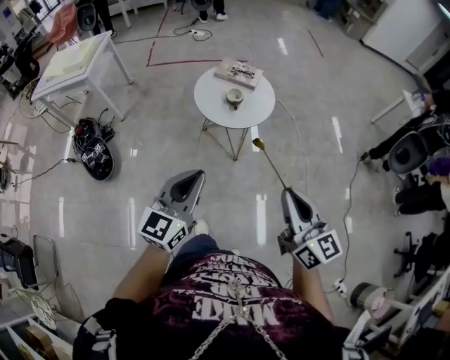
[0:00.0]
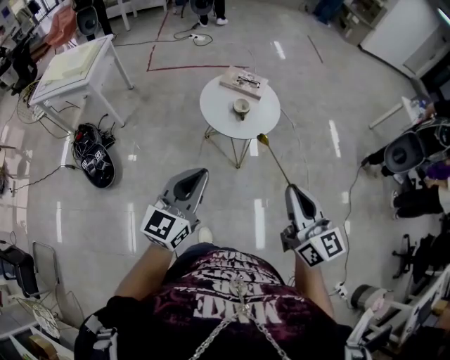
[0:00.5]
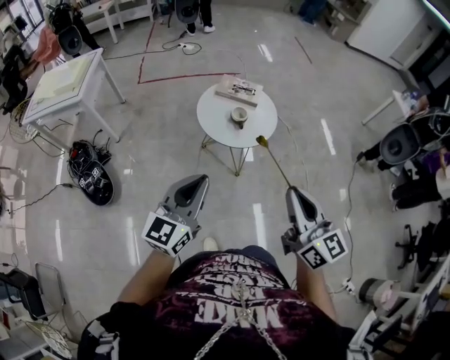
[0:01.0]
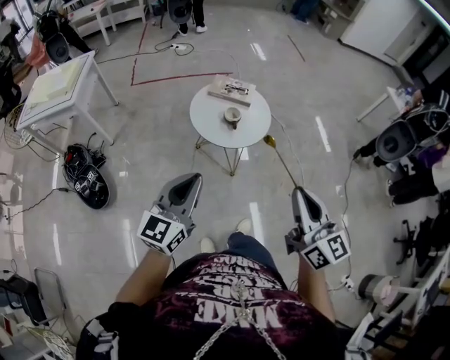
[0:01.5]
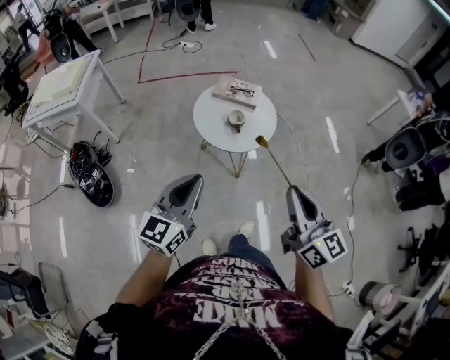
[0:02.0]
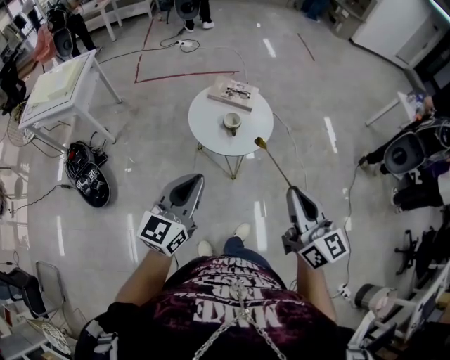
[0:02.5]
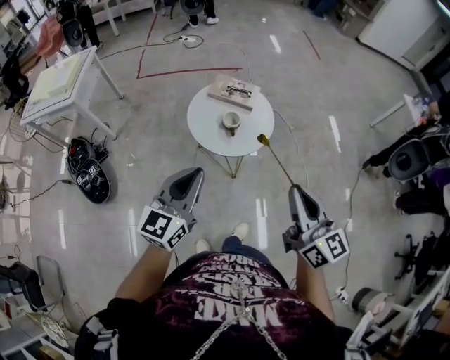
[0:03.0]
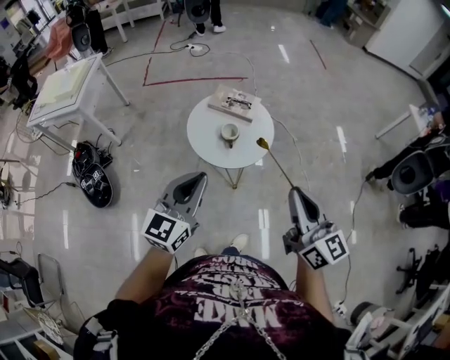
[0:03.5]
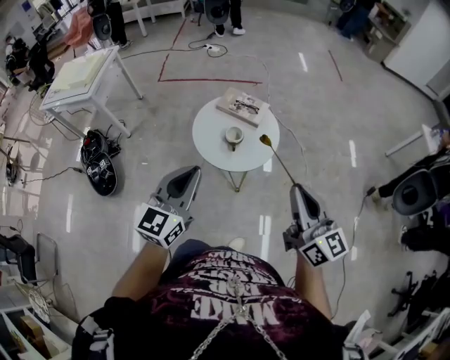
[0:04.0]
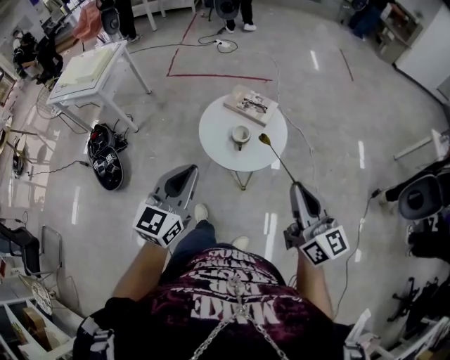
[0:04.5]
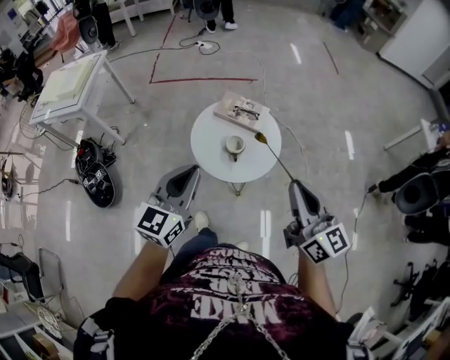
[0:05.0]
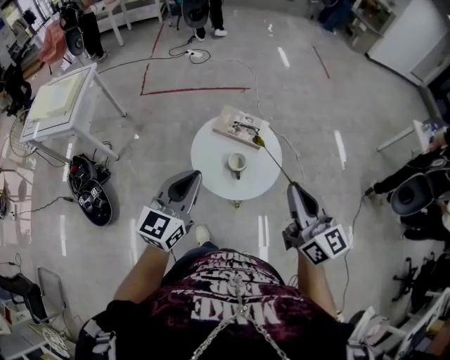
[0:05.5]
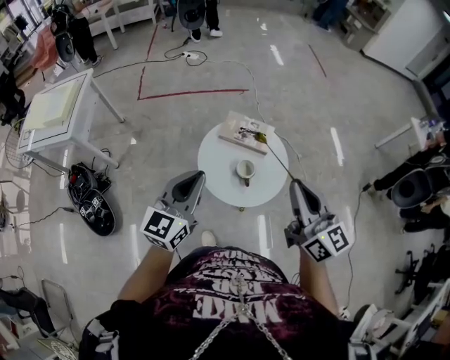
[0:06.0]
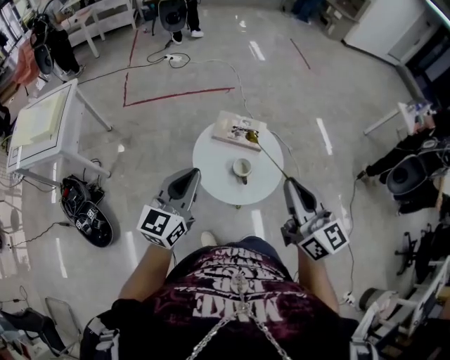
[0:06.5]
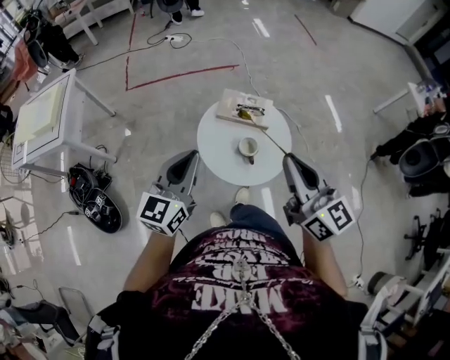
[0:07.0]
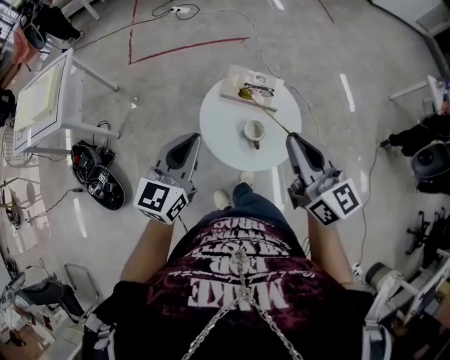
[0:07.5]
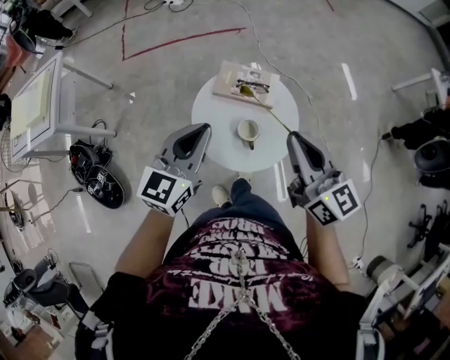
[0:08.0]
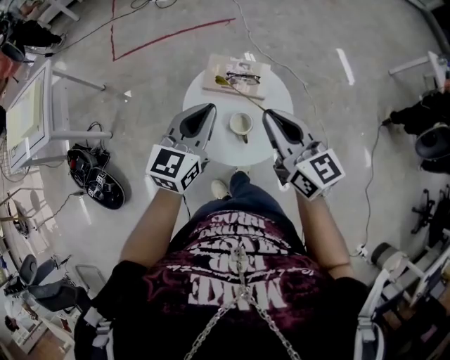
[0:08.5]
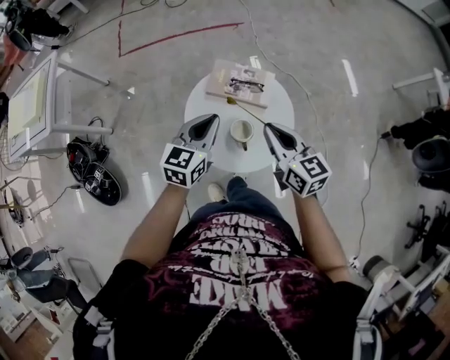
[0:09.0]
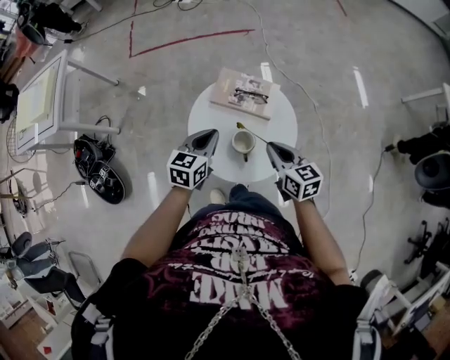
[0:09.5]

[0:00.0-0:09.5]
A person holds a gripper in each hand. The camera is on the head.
0:00.0 to 0:02.0: The grippers both shift forward and to the left by about 10 cm.
0:02.0 to 0:04.0: Both grippers move forward and to the right, some 15 cm.
0:04.0 to 0:05.5: The grippers both shift forward and to the left by approximately 15 cm.
0:05.5 to 0:07.5: The grippers both shift forward and to the left by about 15 cm.
0:07.5 to 0:09.5: The right gripper moves downward, roughly 25 cm, and turns by some 30 degrees; the left gripper moves downward, forward and to the right, about 25 cm, and swivels roughly 20 degrees.

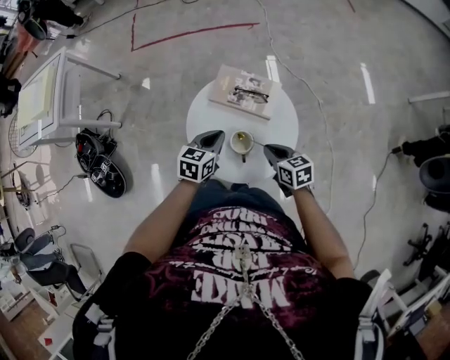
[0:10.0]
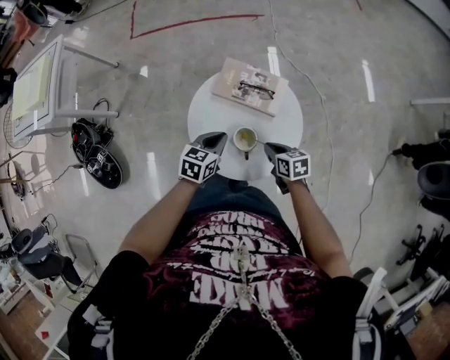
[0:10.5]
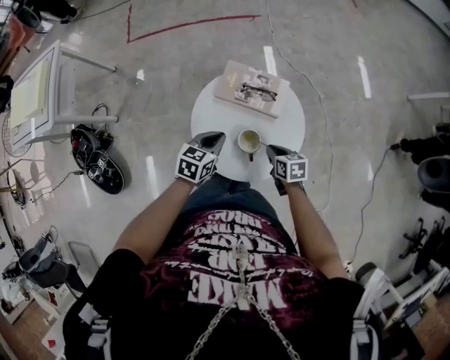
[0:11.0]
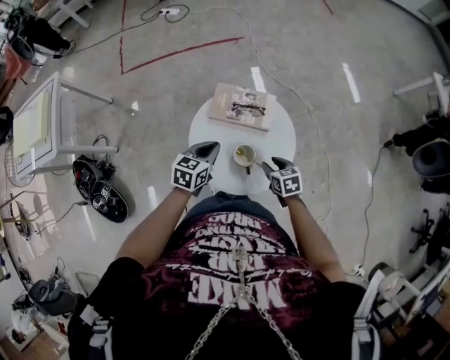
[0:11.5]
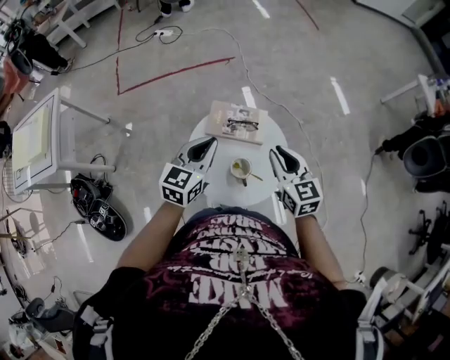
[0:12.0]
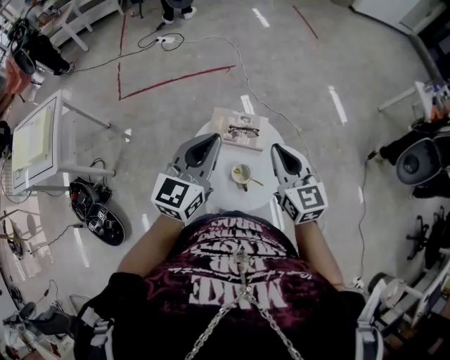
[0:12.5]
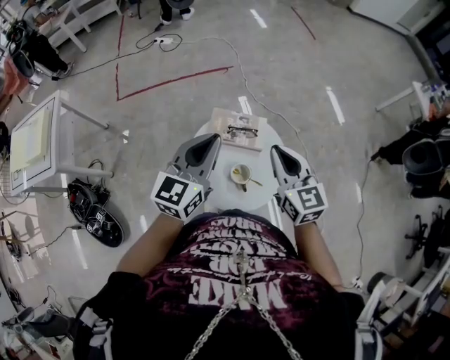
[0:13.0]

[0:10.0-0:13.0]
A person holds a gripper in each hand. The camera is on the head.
0:10.0 to 0:11.5: The right gripper ends up about 5 cm from where it was, and opens its fingers.
0:11.5 to 0:13.0: Both grippers travel together upward, roughly 30 cm. The left gripper tilts its fingers approximately 30 degrees upward, while the right gripper tips its fingers upward by some 40 degrees, and closes its fingers.

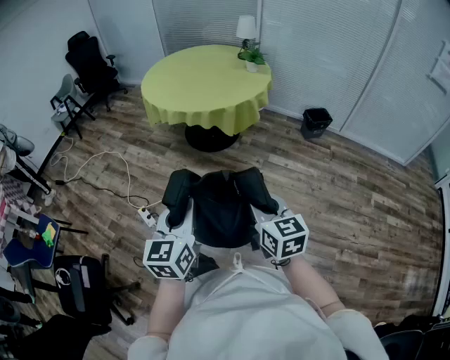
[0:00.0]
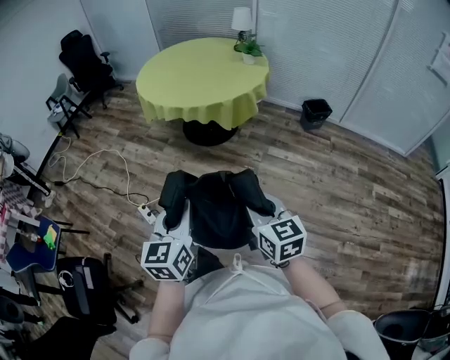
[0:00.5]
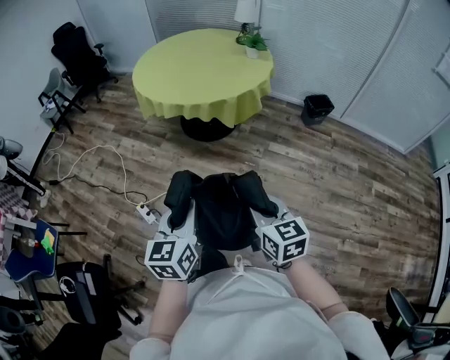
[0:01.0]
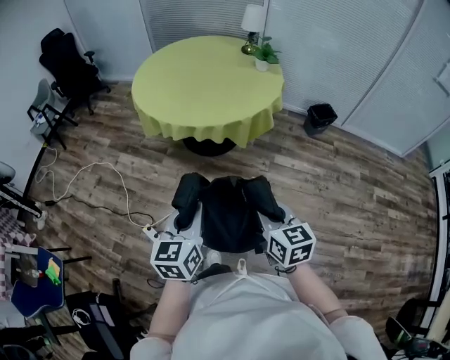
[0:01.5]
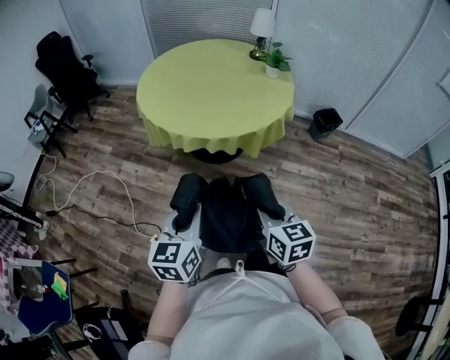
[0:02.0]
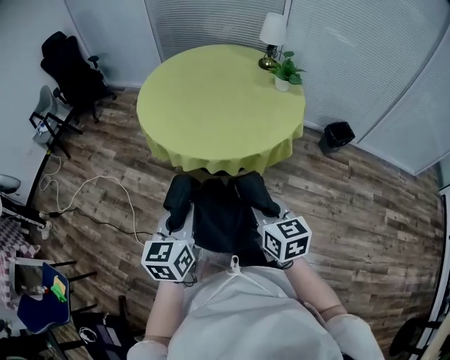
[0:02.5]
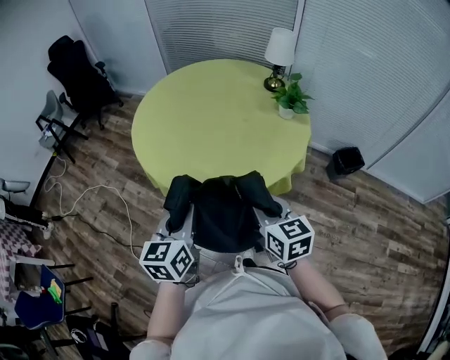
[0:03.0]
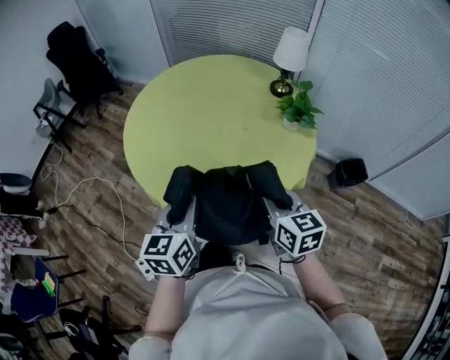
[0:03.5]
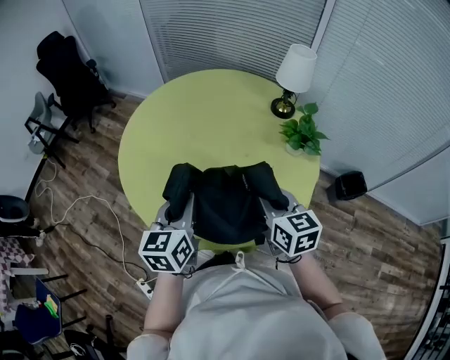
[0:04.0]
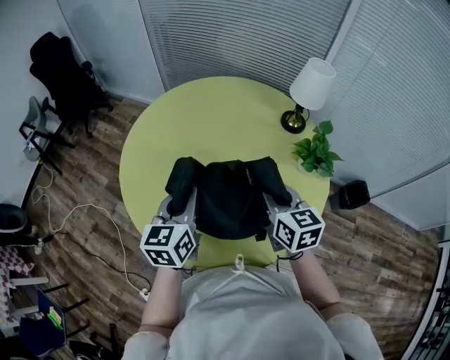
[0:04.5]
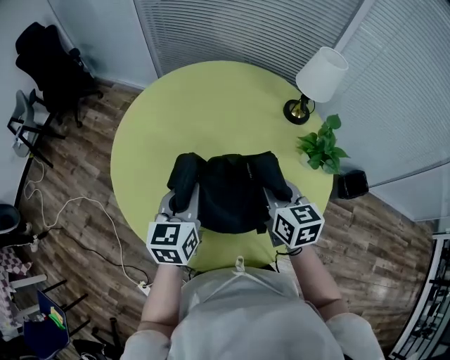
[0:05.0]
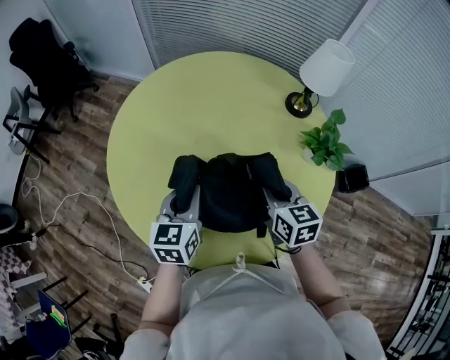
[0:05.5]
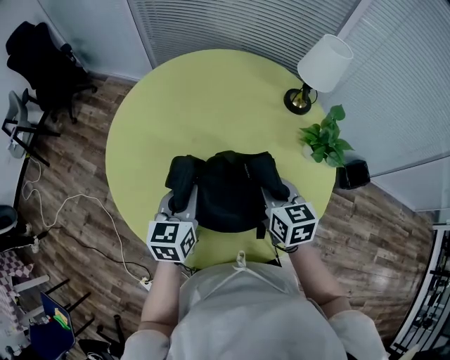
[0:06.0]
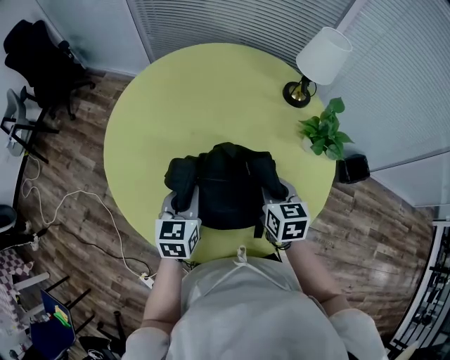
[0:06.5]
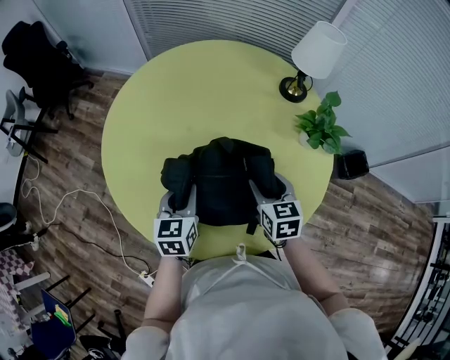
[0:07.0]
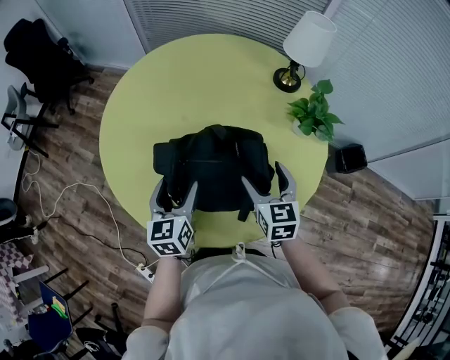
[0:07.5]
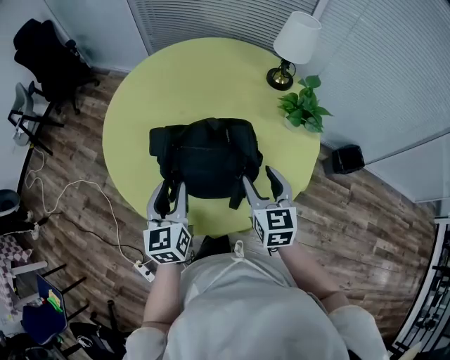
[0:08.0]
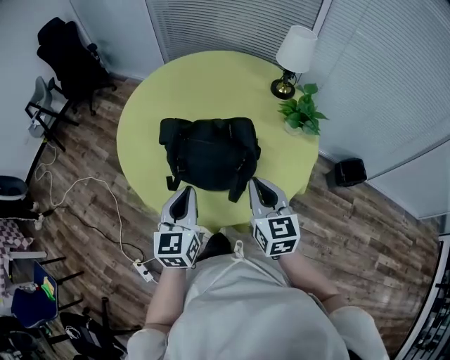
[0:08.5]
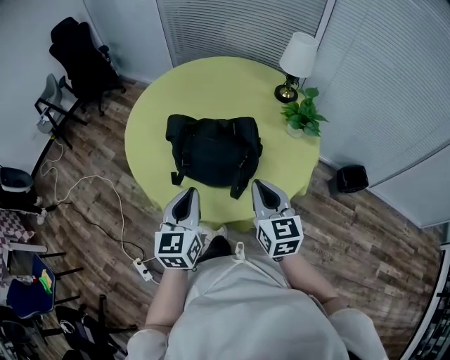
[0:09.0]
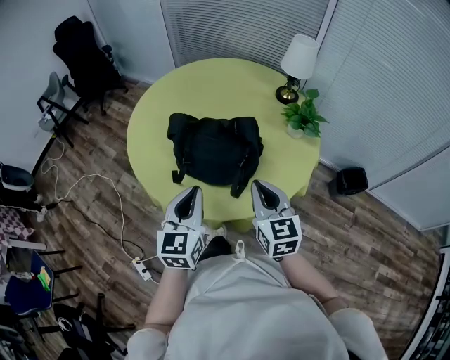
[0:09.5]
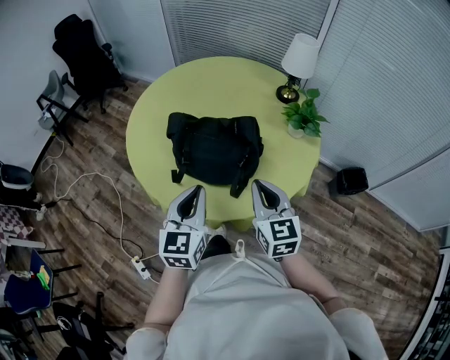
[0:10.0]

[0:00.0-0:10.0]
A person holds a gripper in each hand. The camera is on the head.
0:00.0 to 0:02.0: Both grippers travel together forward and to the left, about 35 cm.
0:02.0 to 0:04.0: The pair of grippers is taken forward, about 60 cm.
0:04.0 to 0:06.0: Both grippers travel together forward and downward, about 20 cm.
0:06.0 to 0:08.0: Both grippers move backward, about 15 cm. The right gripper opens up, while the left gripper opens its fingers.
0:08.0 to 0:10.0: The right gripper goes roughly 15 cm backward and upward, and closes, while the left gripper moves backward, upward and to the right, some 15 cm, and closes its fingers.

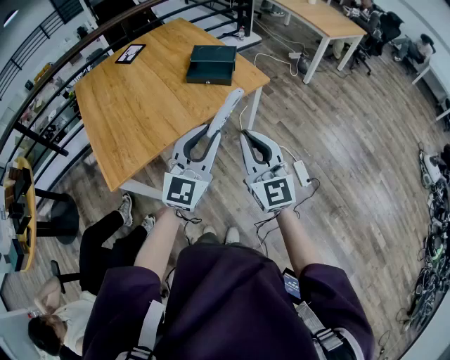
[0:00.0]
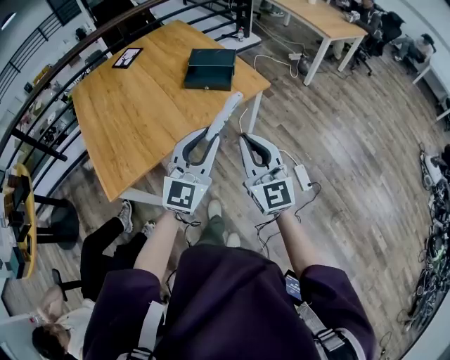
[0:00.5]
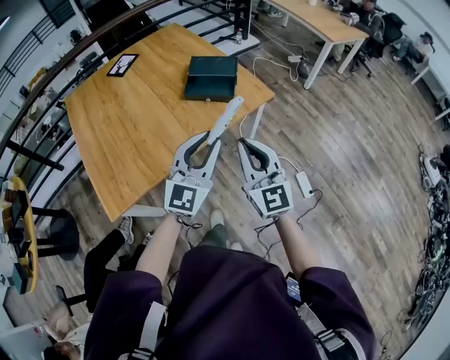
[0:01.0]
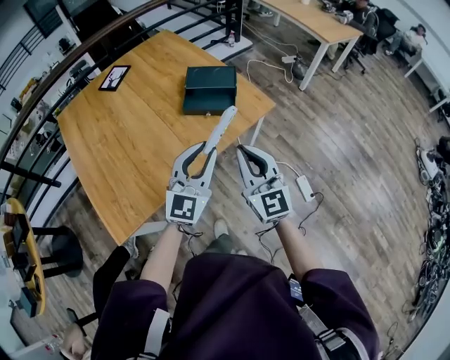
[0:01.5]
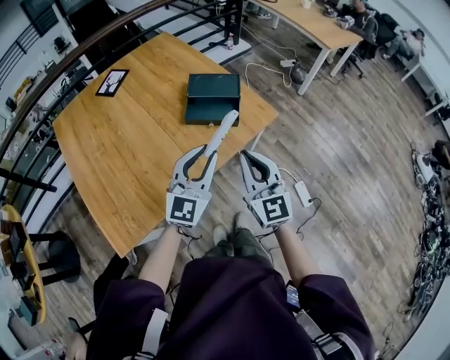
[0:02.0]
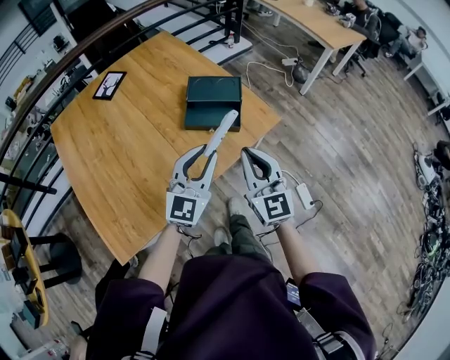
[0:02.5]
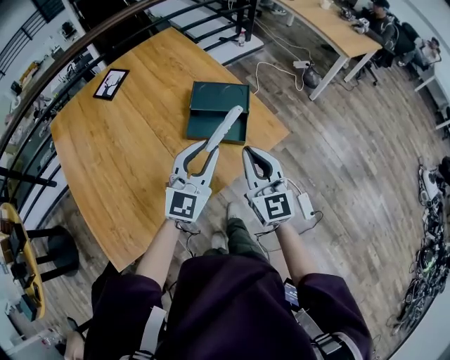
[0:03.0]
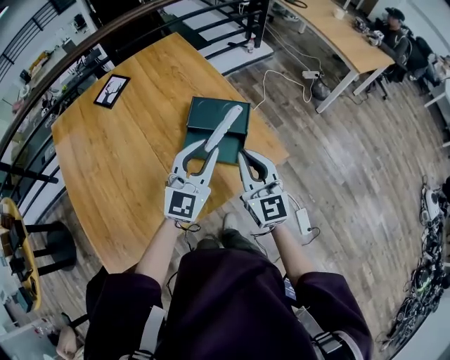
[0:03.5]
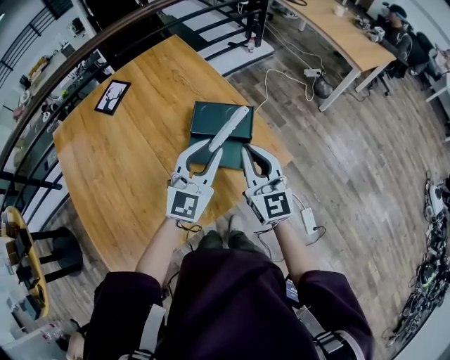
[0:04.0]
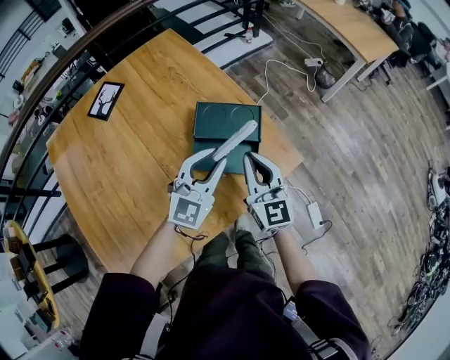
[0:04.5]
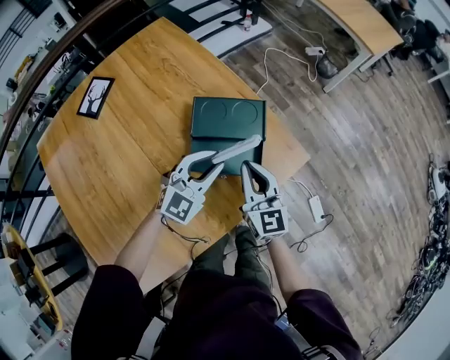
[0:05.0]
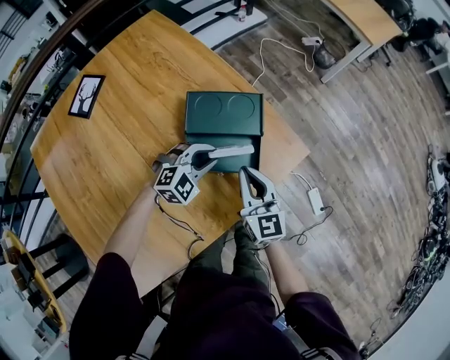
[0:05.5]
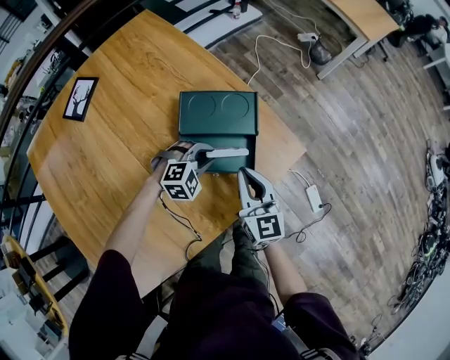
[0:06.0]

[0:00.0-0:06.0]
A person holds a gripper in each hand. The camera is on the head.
0:00.0 to 0:02.0: The grippers both shift forward by some 25 cm.
0:02.0 to 0:04.0: The grippers both shift forward by about 25 cm.
0:04.0 to 0:06.0: The left gripper moves downward, some 30 cm, and points its fingers approximately 50 degrees further downward. The right gripper travels downward by some 20 cm.
